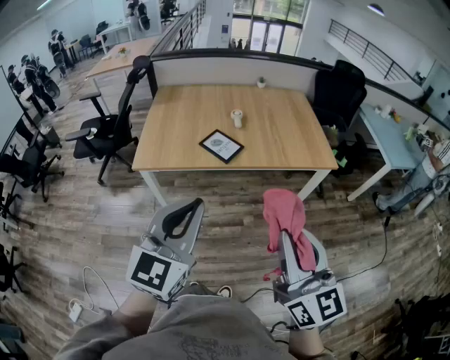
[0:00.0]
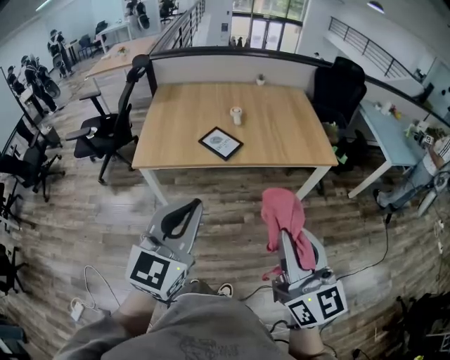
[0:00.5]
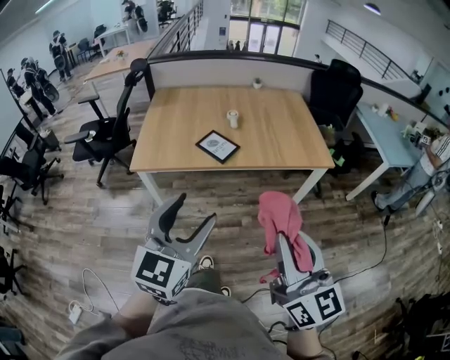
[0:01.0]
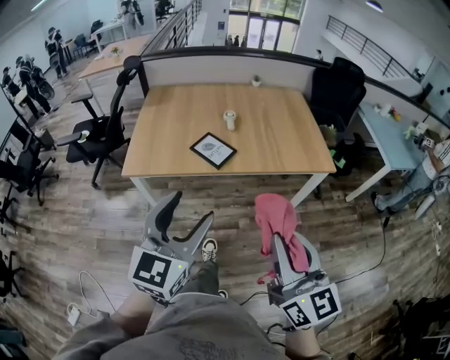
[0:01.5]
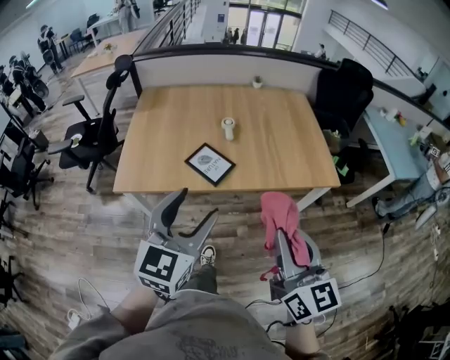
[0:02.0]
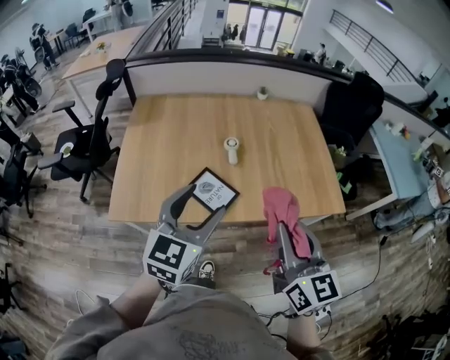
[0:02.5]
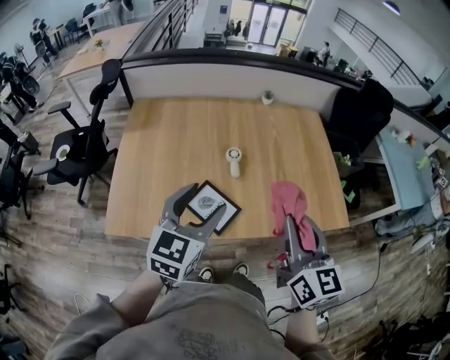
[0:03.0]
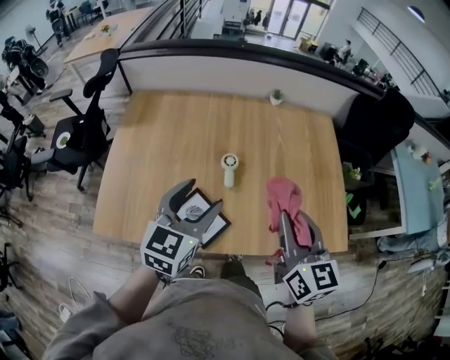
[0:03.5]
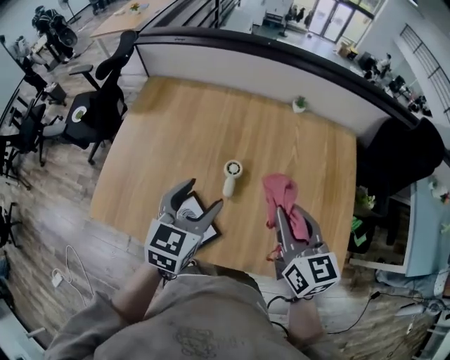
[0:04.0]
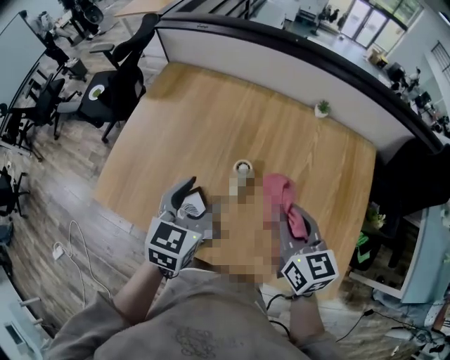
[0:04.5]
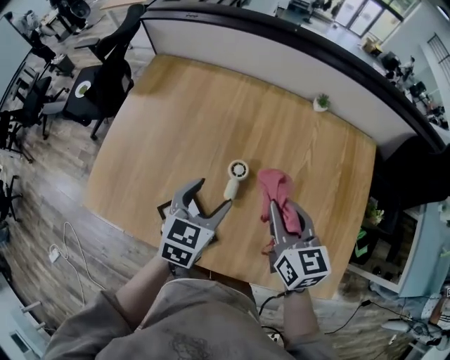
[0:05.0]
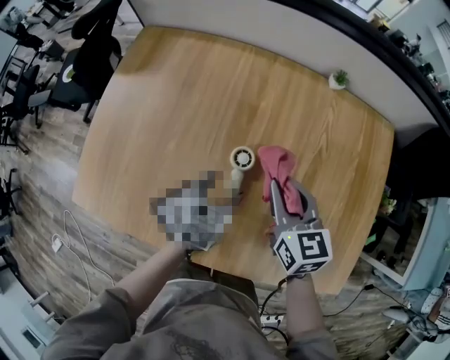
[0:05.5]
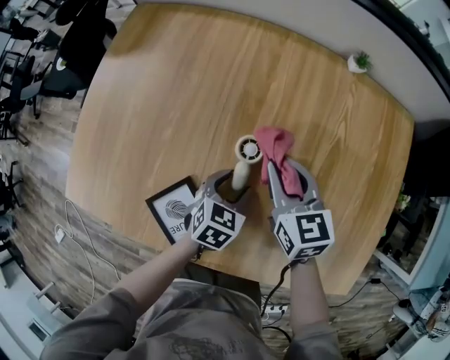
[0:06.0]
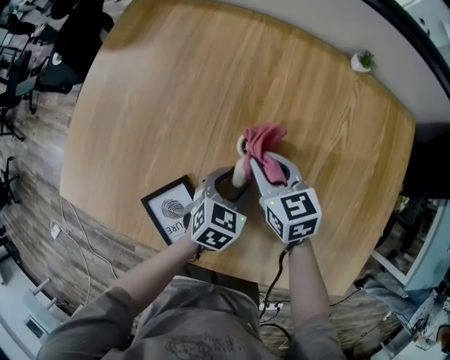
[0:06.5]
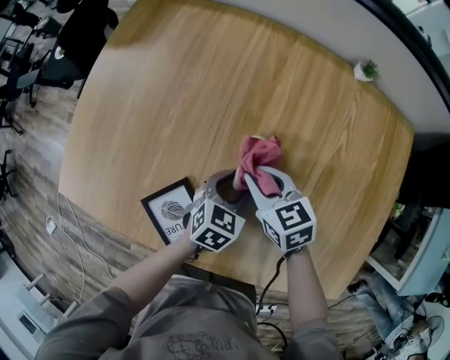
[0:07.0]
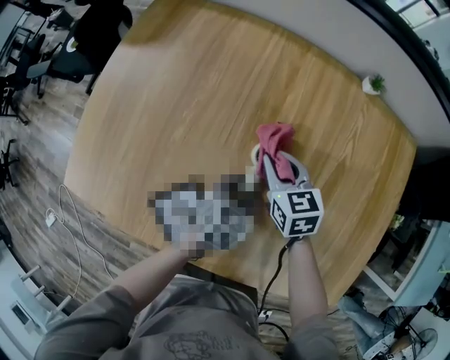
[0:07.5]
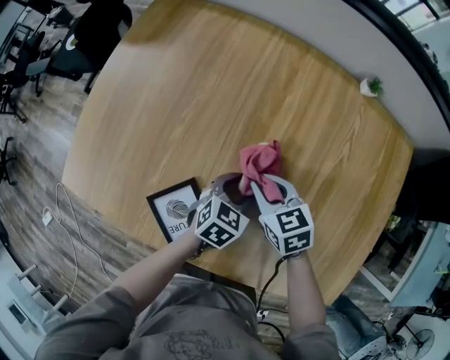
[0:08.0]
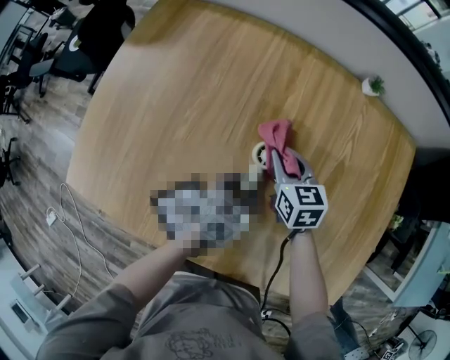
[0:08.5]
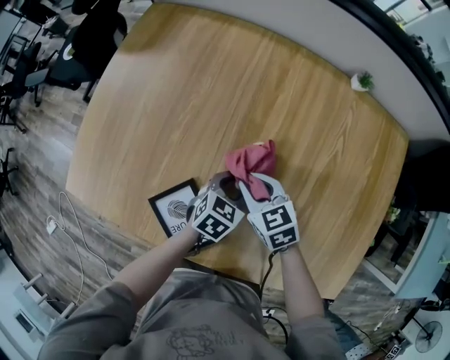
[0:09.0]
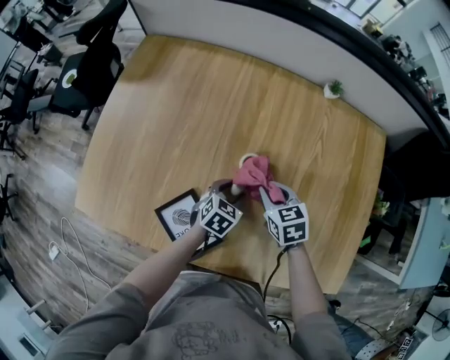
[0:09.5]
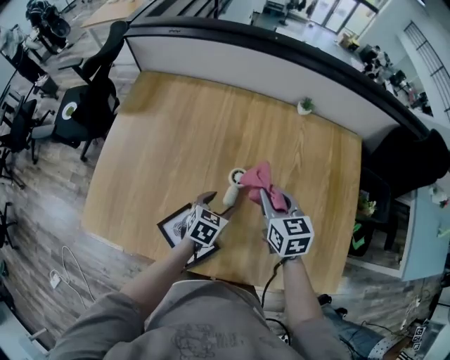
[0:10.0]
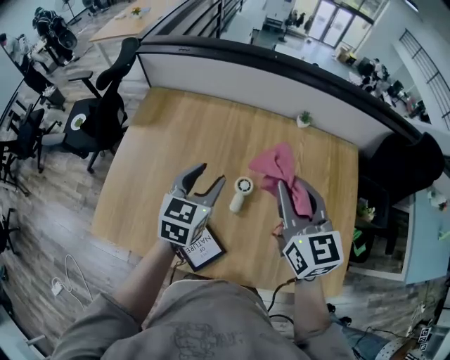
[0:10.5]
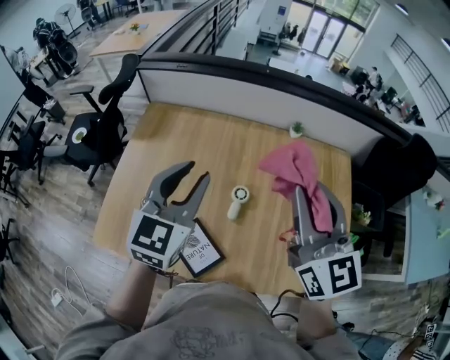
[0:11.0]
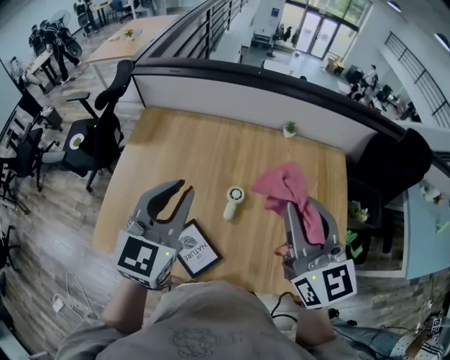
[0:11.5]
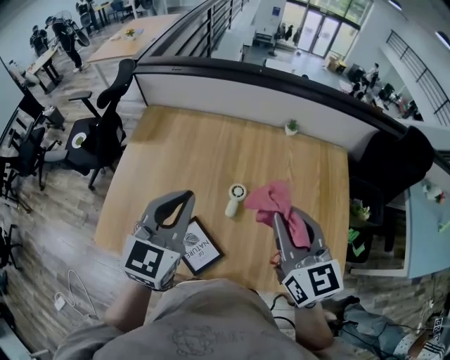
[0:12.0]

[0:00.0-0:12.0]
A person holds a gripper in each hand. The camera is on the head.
0:00.0 to 0:02.0: Both grippers travel together forward, some 20 cm. The left gripper opens.
0:02.0 to 0:04.0: The two grippers travel together, forward, roughly 50 cm. The right gripper rotates some 20 degrees; the left gripper turns by about 20 degrees.
0:04.0 to 0:06.0: The left gripper heads downward, covering about 30 cm, and changes its angle by about 30 degrees. Meanwhile the right gripper shifts roughly 30 cm downward and forward.
0:06.0 to 0:08.0: The right gripper travels downward by approximately 5 cm, and swivels some 20 degrees.
0:08.0 to 0:10.0: The right gripper travels upward and to the right by some 15 cm, and rotates some 30 degrees. Meanwhile the left gripper moves upward, some 5 cm.
0:10.0 to 0:12.0: The left gripper goes about 35 cm upward, points its fingers approximately 40 degrees further upward, and closes. The right gripper shifts about 25 cm upward and backward, and changes its angle by some 20 degrees.

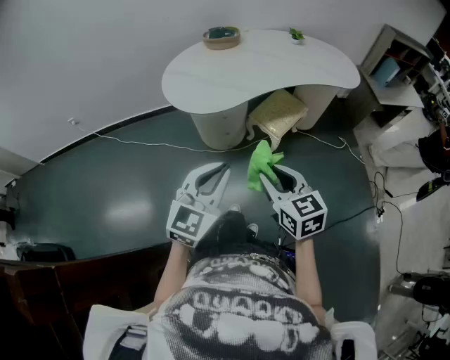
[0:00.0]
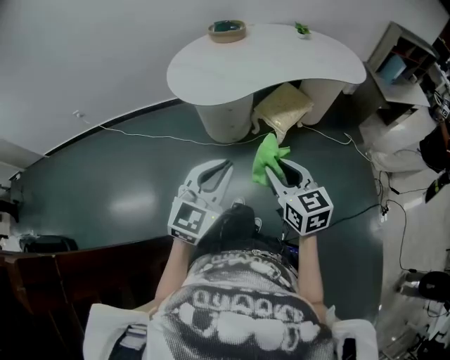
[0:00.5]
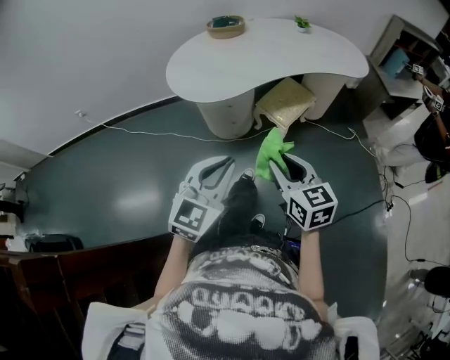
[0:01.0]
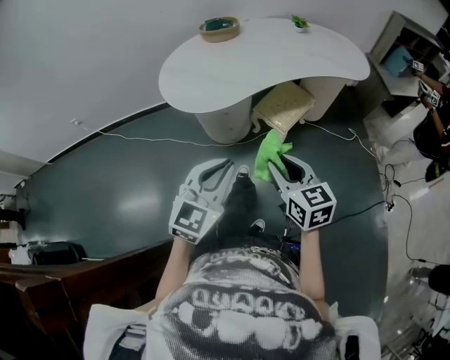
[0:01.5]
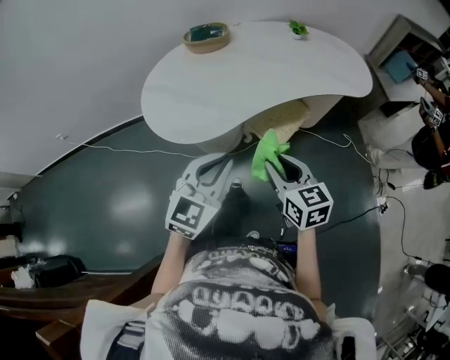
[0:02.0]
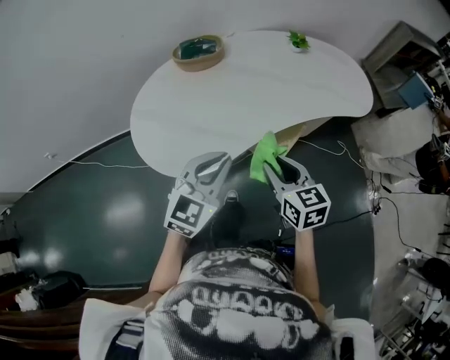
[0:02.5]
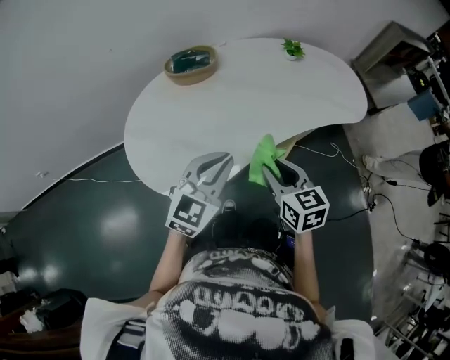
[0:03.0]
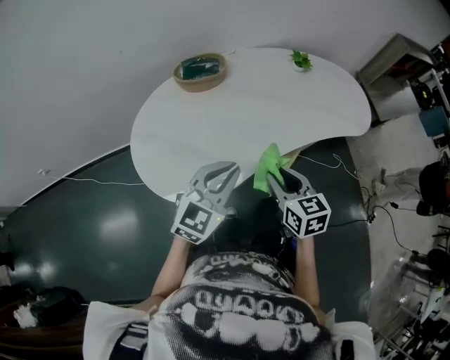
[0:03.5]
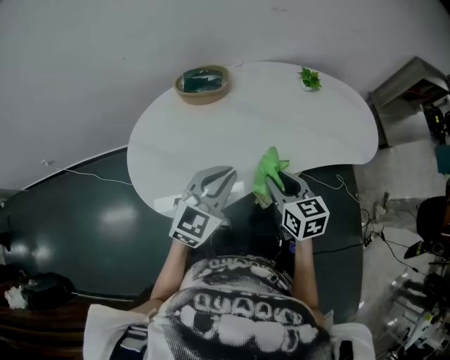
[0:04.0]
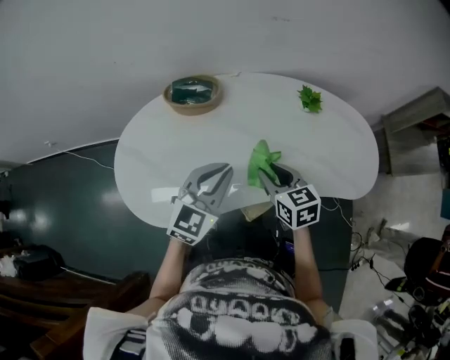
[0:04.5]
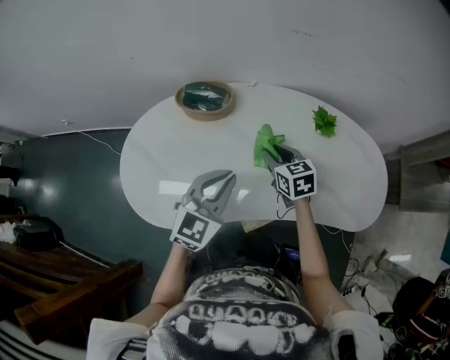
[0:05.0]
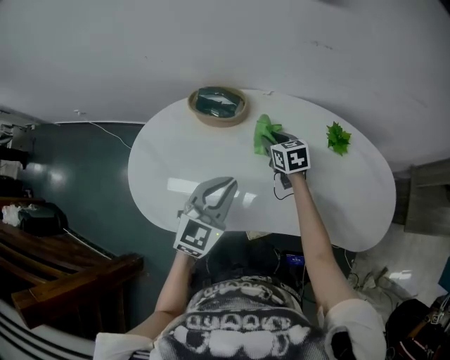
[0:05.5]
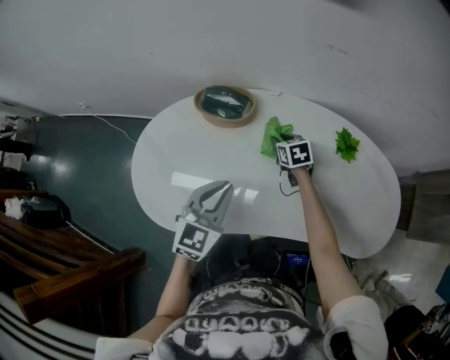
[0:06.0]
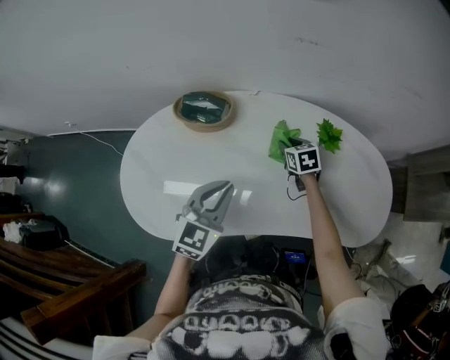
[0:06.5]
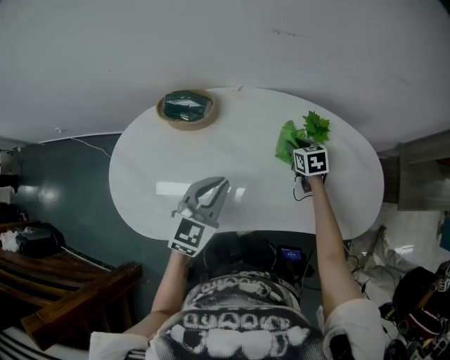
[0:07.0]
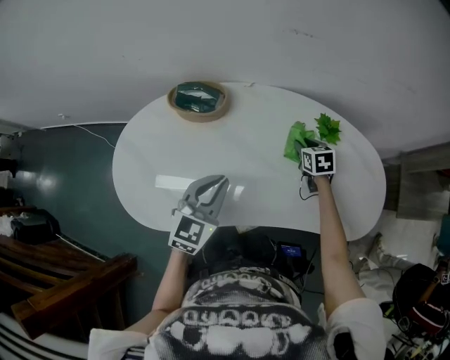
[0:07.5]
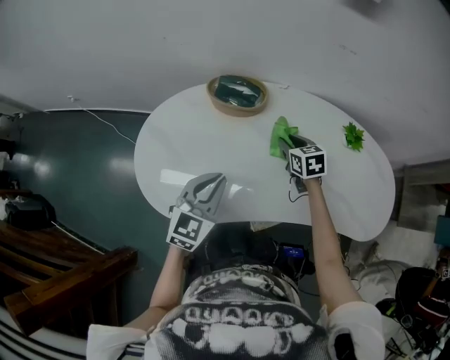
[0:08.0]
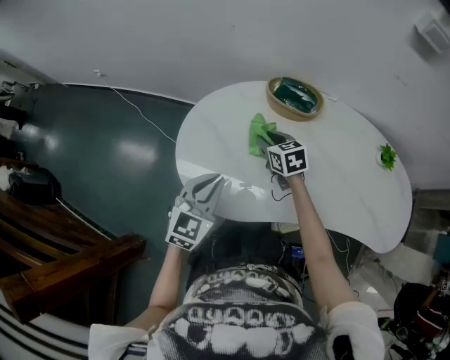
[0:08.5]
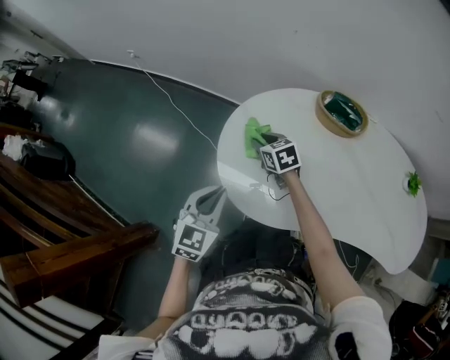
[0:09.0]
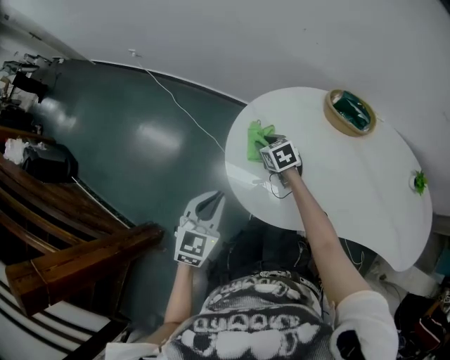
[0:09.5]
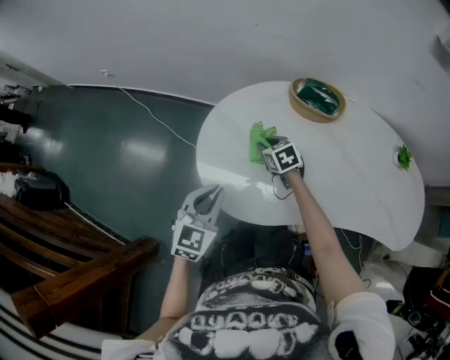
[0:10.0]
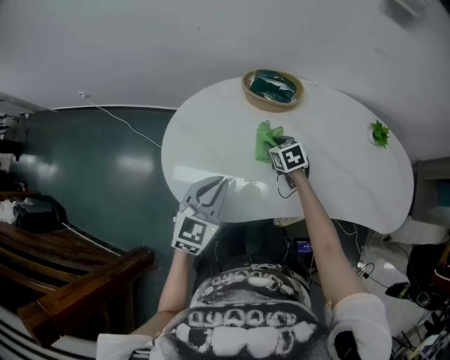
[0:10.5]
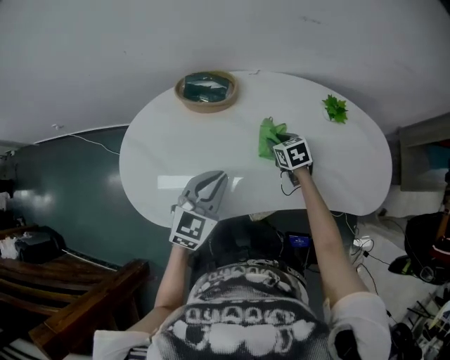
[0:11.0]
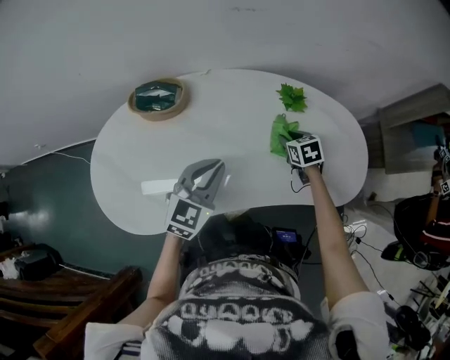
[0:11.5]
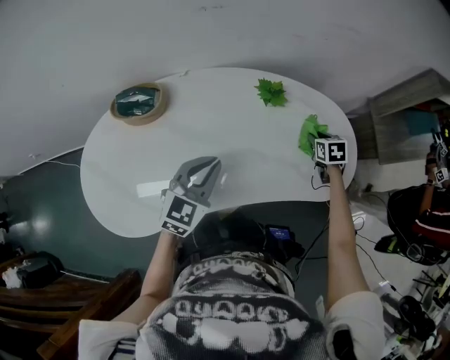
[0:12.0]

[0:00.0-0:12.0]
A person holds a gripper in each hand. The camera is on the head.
0:00.0 to 0:02.0: The grippers both shift forward by roughly 20 cm.
0:02.0 to 0:04.0: The grippers both shift forward by roughly 25 cm.
0:04.0 to 0:06.0: The right gripper shifts by some 40 cm, and changes its angle by roughly 30 degrees. The left gripper changes place by about 15 cm, and swivels roughly 30 degrees.
0:06.0 to 0:08.0: The right gripper moves backward and upward, approximately 10 cm, and goes to the right and returns, roughly 20 cm each way. Meanwhile the left gripper travels to the left by approximately 10 cm.
0:08.0 to 0:10.0: The left gripper moves about 25 cm. The right gripper shifts by about 35 cm, and swivels roughly 20 degrees.
0:10.0 to 0:12.0: The pair of grippers is taken about 60 cm. The left gripper turns by about 30 degrees. Meanwhile the right gripper rotates some 50 degrees.

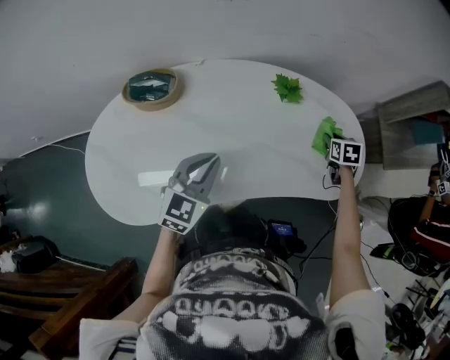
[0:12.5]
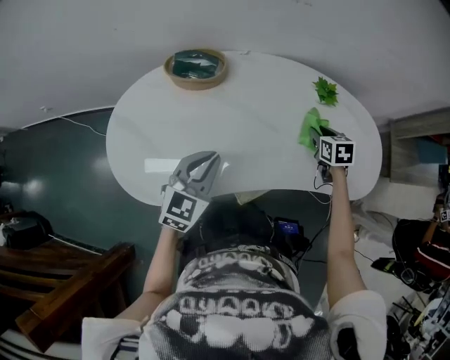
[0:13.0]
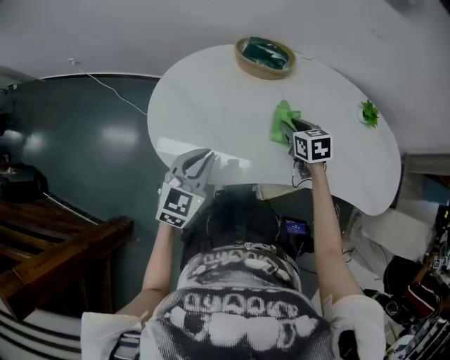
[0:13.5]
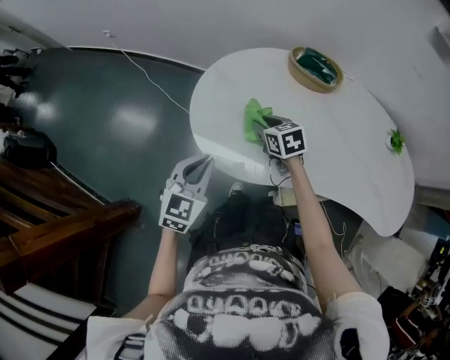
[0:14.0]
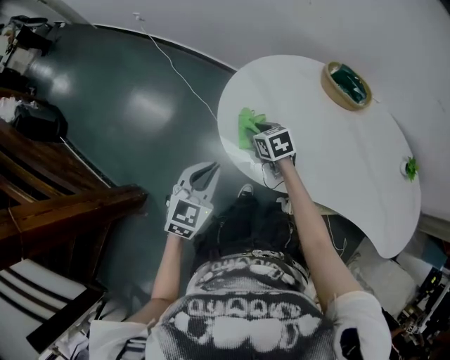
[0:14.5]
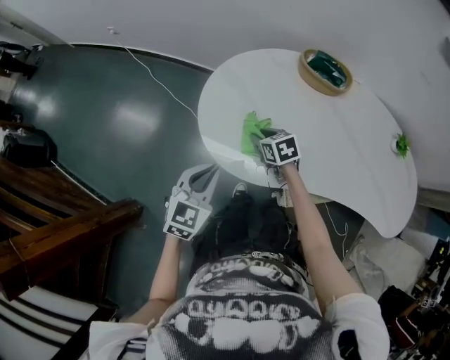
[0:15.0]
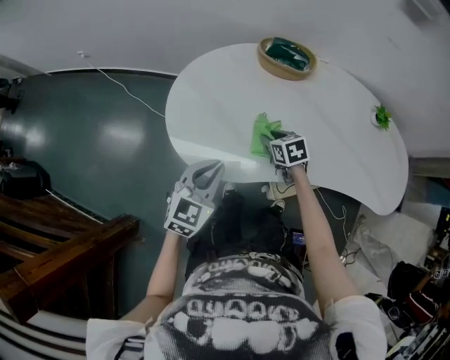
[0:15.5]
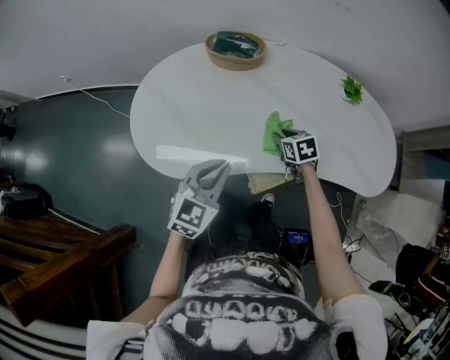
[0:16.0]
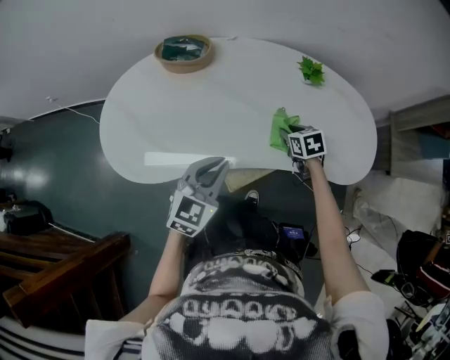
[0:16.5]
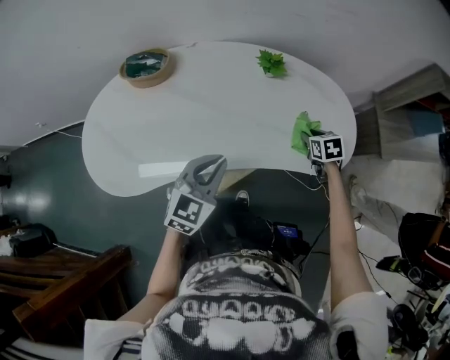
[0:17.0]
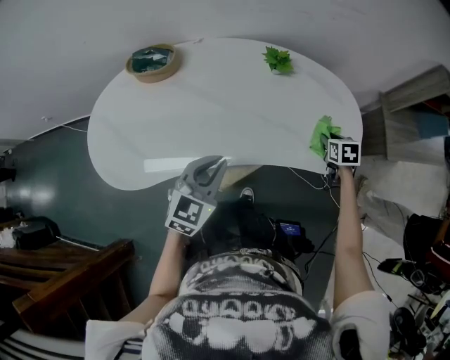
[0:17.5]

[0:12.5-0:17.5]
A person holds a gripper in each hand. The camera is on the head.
0:12.5 to 0:15.0: Both grippers are carried about 60 cm. The left gripper changes its angle by approximately 30 degrees. The right gripper rotates some 60 degrees.
0:15.0 to 0:17.5: The two grippers travel together, roughly 70 cm. The left gripper rotates roughly 30 degrees. Meanwhile the right gripper rotates some 50 degrees.
